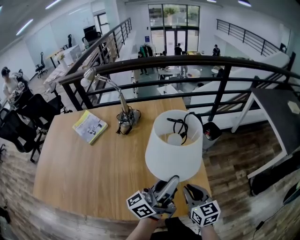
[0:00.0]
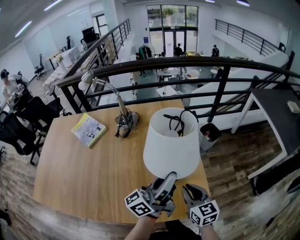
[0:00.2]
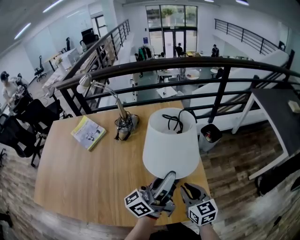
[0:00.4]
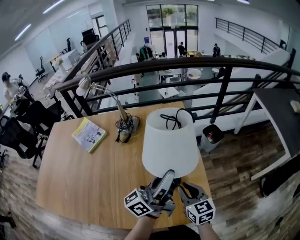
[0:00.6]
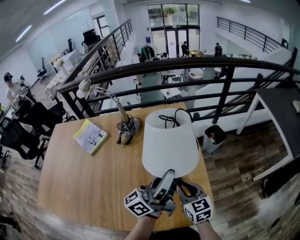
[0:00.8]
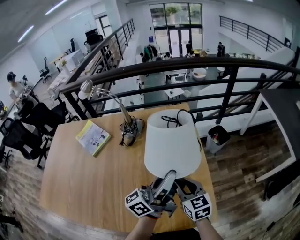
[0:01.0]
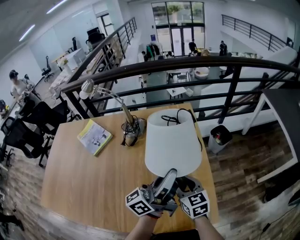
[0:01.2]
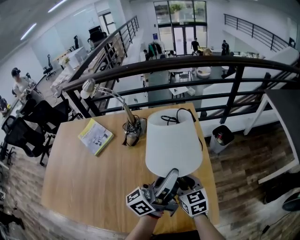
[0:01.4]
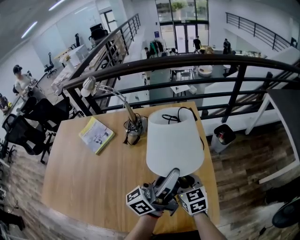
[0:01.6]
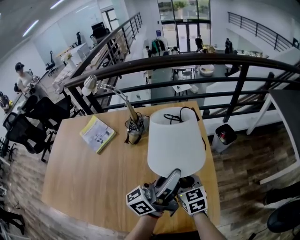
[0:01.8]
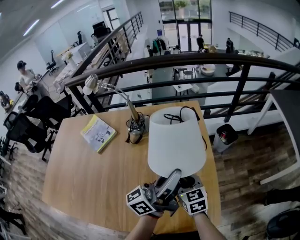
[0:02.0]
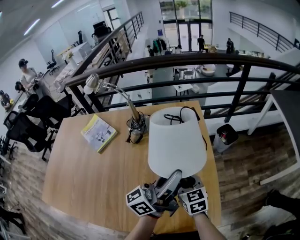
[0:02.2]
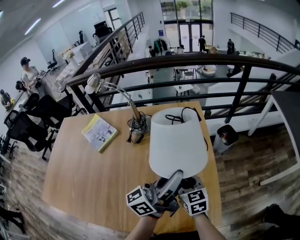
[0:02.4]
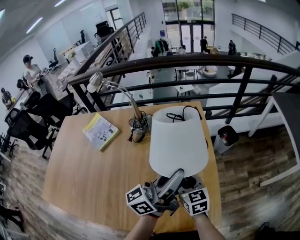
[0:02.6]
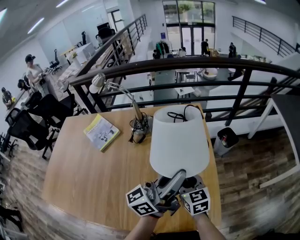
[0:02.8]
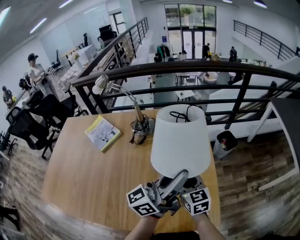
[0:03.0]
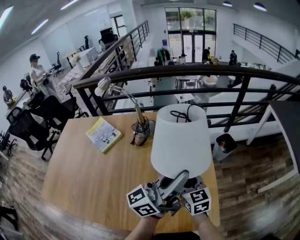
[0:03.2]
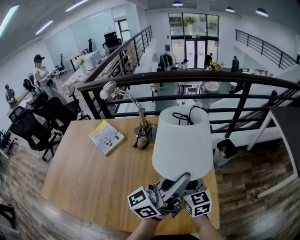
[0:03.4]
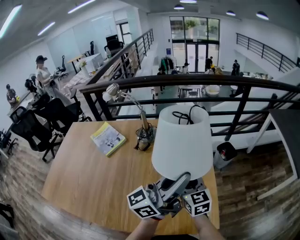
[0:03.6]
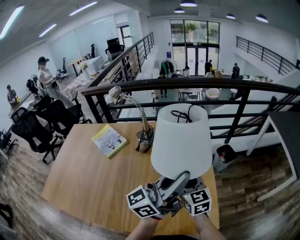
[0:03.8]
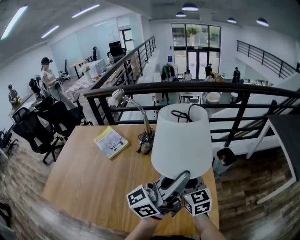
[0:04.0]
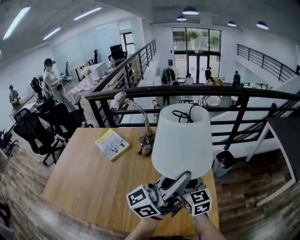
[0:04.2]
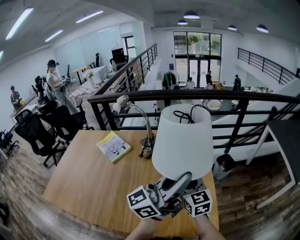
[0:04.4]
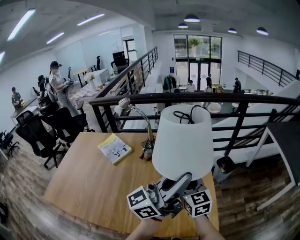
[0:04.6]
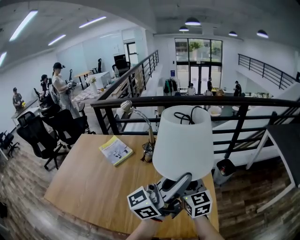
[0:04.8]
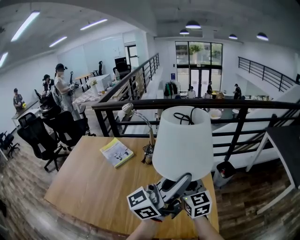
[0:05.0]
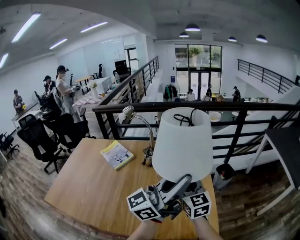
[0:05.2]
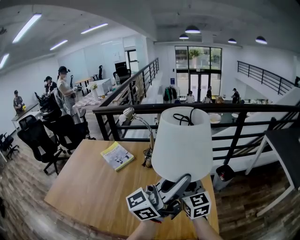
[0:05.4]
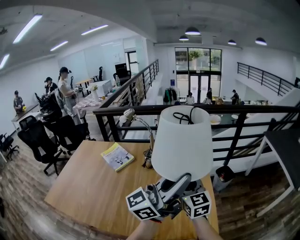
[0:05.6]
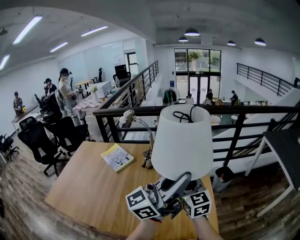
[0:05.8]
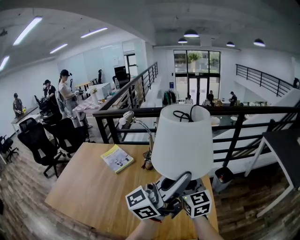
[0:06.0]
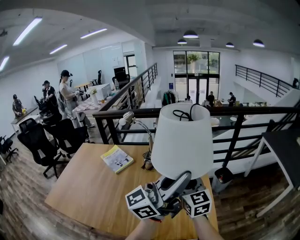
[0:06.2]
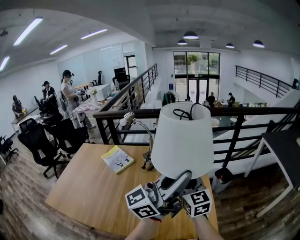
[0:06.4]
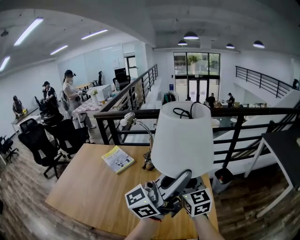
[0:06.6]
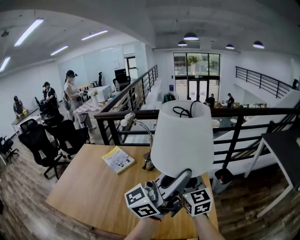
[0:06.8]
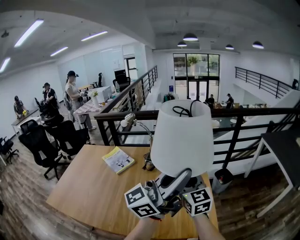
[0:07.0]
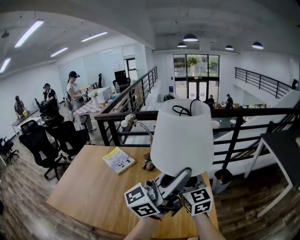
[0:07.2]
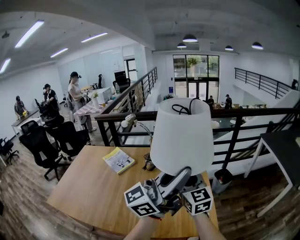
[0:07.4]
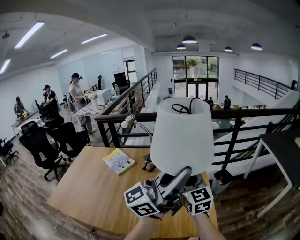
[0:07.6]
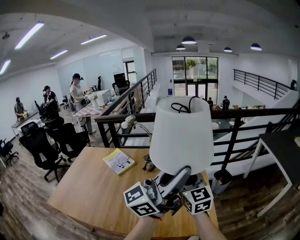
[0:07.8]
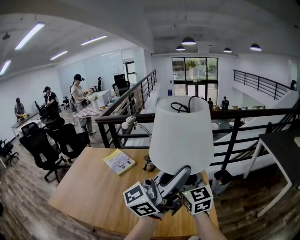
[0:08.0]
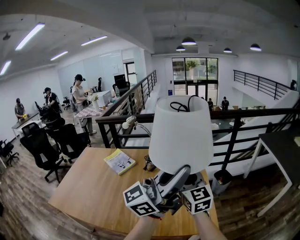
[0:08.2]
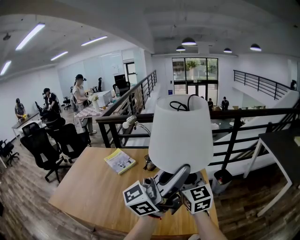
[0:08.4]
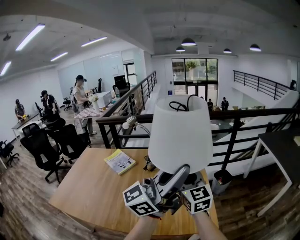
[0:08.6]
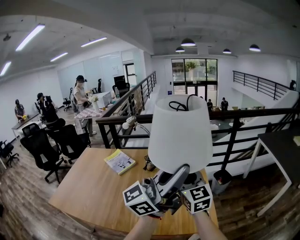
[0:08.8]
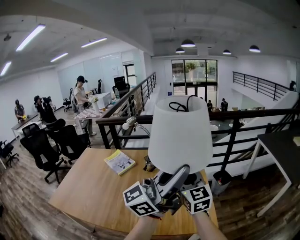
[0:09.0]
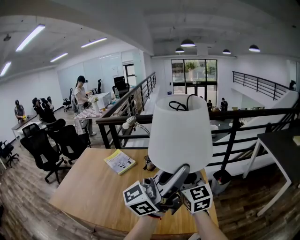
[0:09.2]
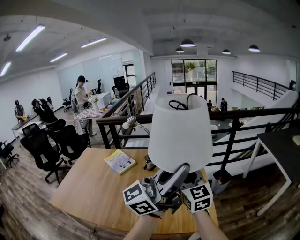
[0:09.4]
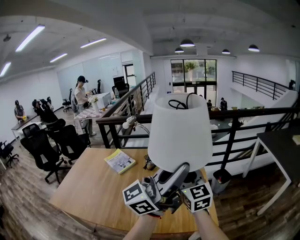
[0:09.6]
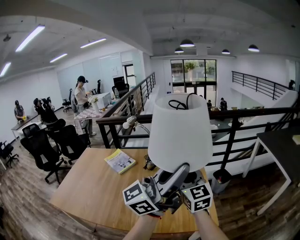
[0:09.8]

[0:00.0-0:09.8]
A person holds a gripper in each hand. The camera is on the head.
0:00.0 to 0:01.4: The right gripper moves forward and to the left, roughly 15 cm. Meanwhile the left gripper moves forward, about 10 cm.
0:01.4 to 0:02.8: The grippers stay close to where they were, moving slightly.
0:02.8 to 0:04.2: The right gripper is displaced upward by about 10 cm. Meanwhile the left gripper heads upward and backward, covering about 10 cm.
0:04.2 to 0:05.6: The grippers both shift upward by some 5 cm.
0:05.6 to 0:07.0: The left gripper changes place by about 5 cm. The right gripper shifts by roughly 5 cm.
0:07.0 to 0:08.4: The grippers move only a little.
0:08.4 to 0:09.8: The grippers move only a little.

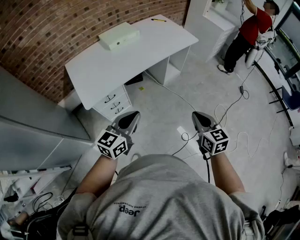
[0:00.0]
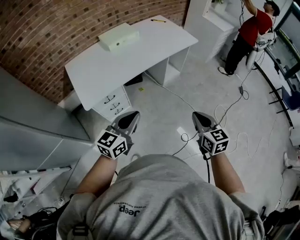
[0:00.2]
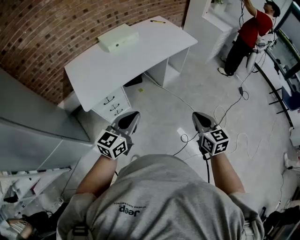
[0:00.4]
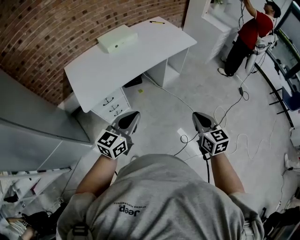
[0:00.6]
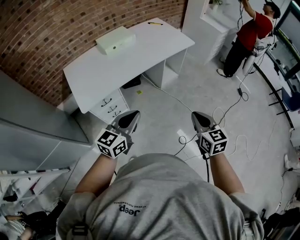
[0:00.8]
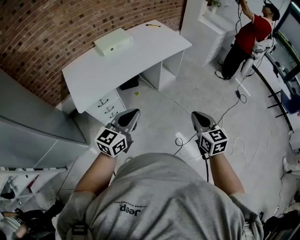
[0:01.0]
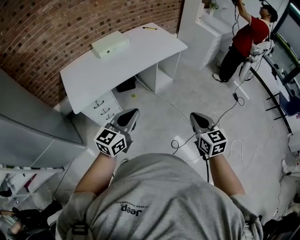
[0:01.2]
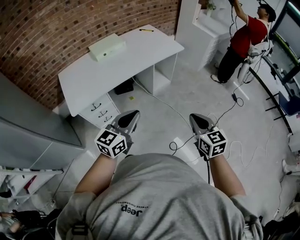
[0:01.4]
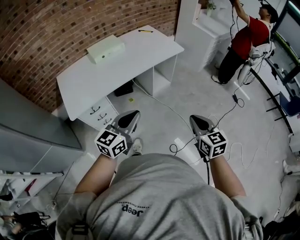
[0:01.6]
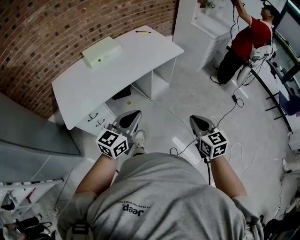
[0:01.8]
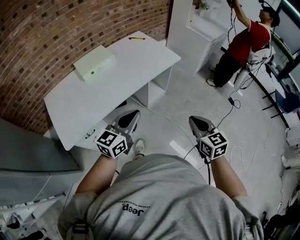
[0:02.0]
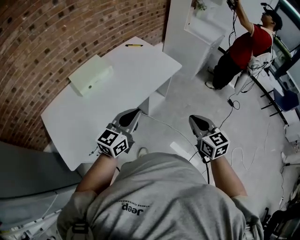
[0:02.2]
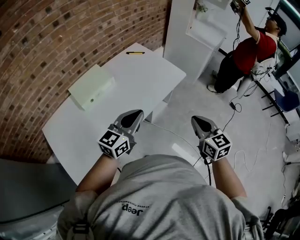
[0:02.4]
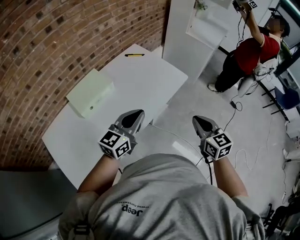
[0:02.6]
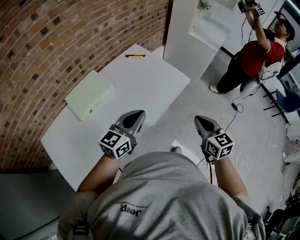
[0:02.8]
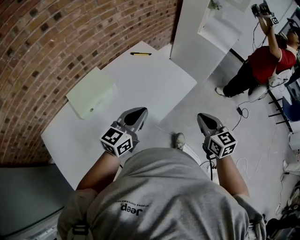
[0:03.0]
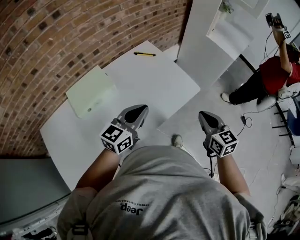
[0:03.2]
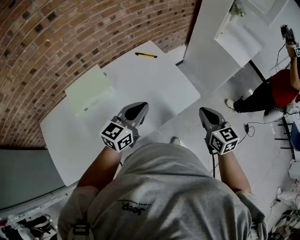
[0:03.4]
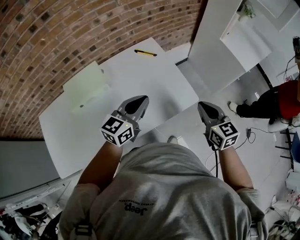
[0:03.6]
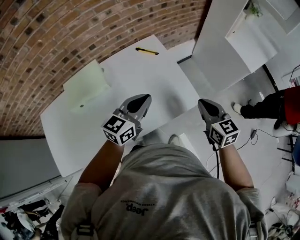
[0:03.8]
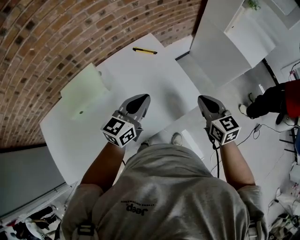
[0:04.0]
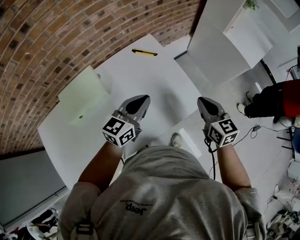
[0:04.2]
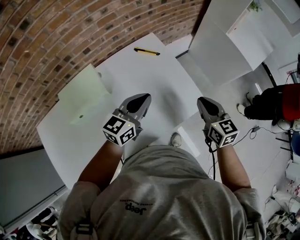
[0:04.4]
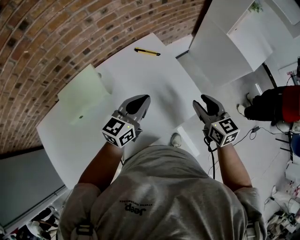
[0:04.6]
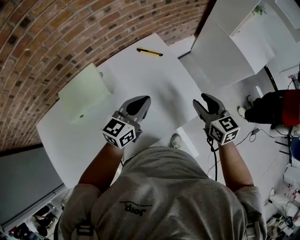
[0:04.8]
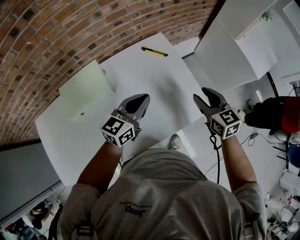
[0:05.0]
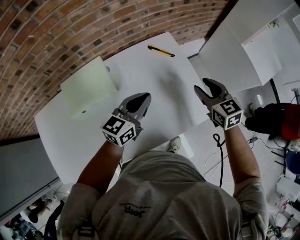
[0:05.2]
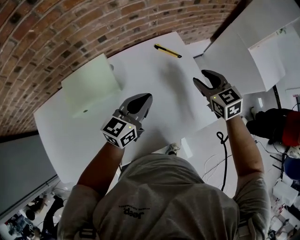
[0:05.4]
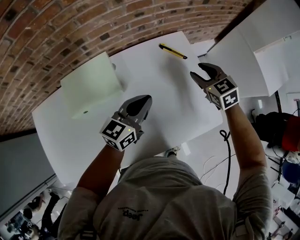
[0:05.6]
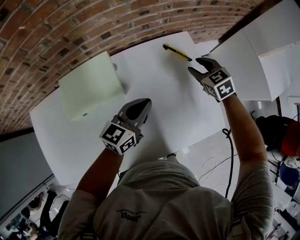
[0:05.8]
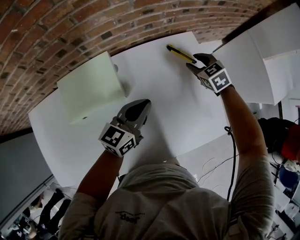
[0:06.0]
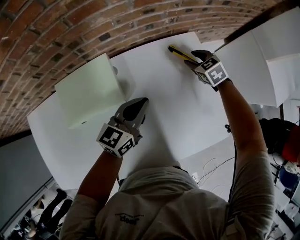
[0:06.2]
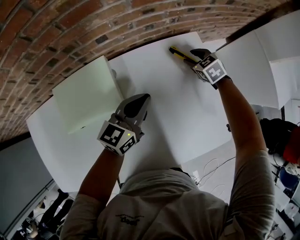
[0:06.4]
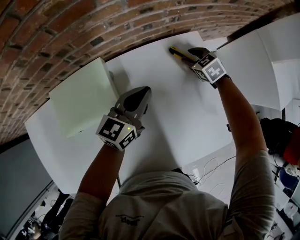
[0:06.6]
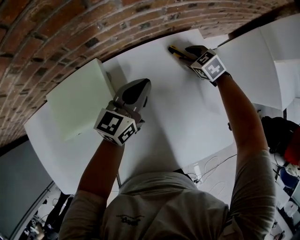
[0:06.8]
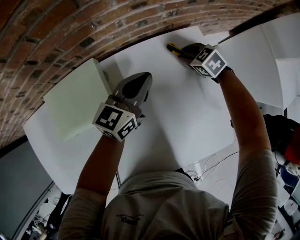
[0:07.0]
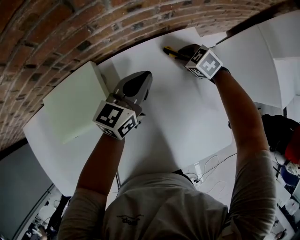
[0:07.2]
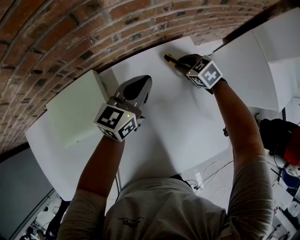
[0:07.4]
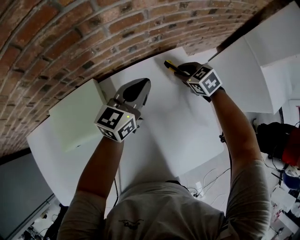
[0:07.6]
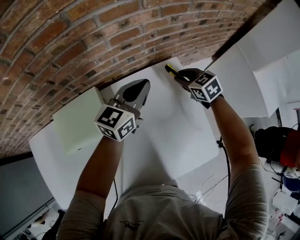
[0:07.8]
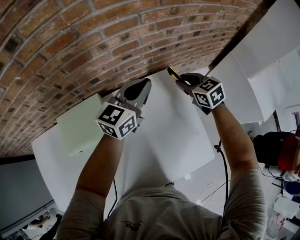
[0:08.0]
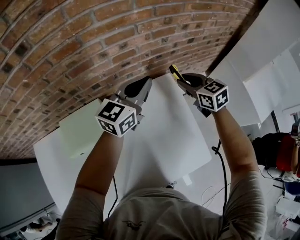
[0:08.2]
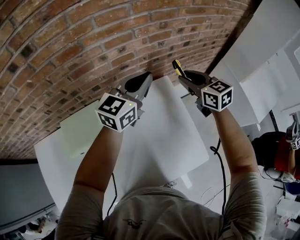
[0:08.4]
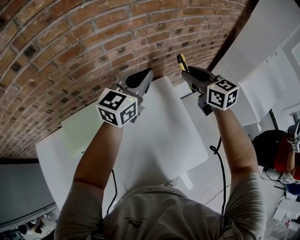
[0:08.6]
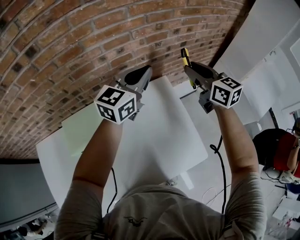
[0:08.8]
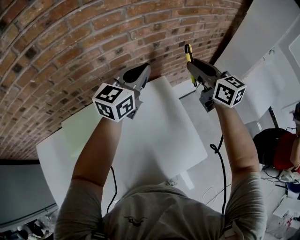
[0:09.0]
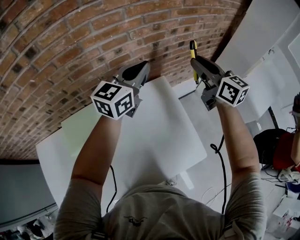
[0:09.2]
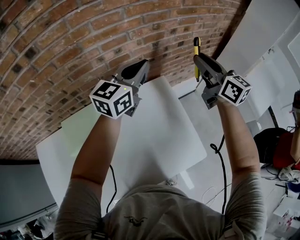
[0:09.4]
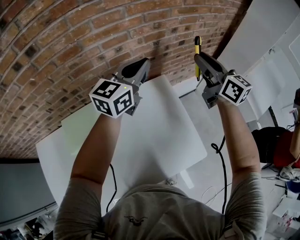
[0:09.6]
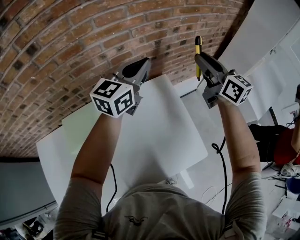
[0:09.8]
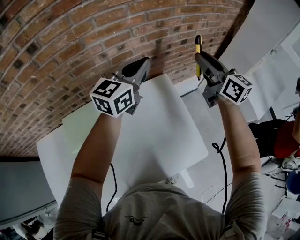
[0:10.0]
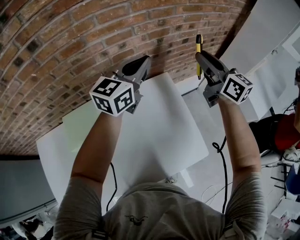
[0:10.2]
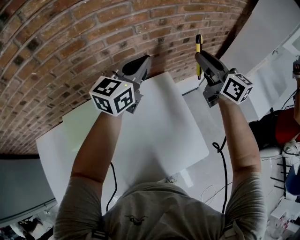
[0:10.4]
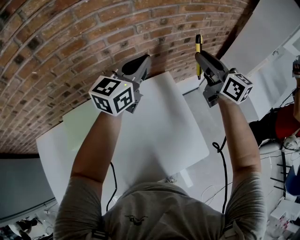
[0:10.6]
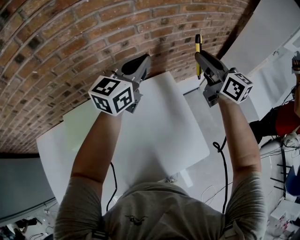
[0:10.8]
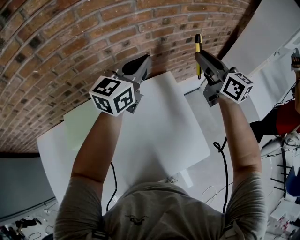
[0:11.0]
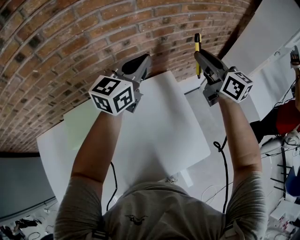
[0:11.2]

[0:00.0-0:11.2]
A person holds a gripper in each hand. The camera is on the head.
0:00.0 to 0:01.6: The left gripper shifts approximately 15 cm to the right and forward. The right gripper heads to the right, covering roughly 15 cm.
0:01.6 to 0:03.2: Both grippers are carried forward, roughly 60 cm.
0:03.2 to 0:04.8: The grippers both shift forward by approximately 20 cm. The right gripper opens its fingers.
0:04.8 to 0:06.4: The right gripper heads forward, downward and to the left, covering some 40 cm, and turns by about 40 degrees; the left gripper heads forward, to the left and downward, covering approximately 20 cm.
0:06.4 to 0:08.0: The left gripper goes roughly 20 cm upward, forward and to the right. Meanwhile the right gripper shifts some 15 cm upward, and changes its angle by approximately 20 degrees.
0:08.0 to 0:09.6: The left gripper heads upward, covering approximately 15 cm; the right gripper shifts approximately 25 cm upward, and tips its fingers upward by about 40 degrees.
0:09.6 to 0:11.2: The grippers move only a little.

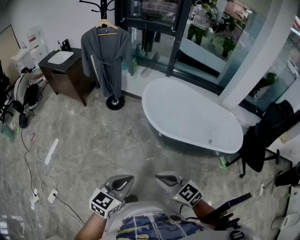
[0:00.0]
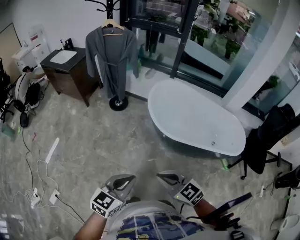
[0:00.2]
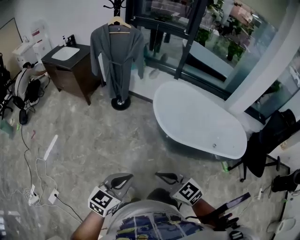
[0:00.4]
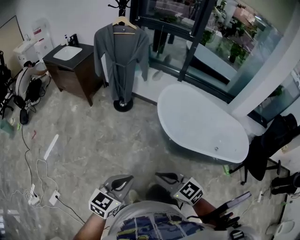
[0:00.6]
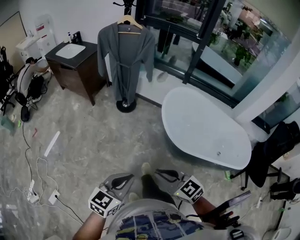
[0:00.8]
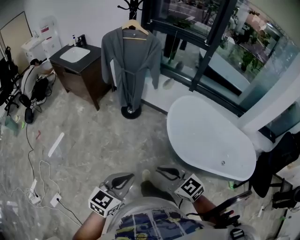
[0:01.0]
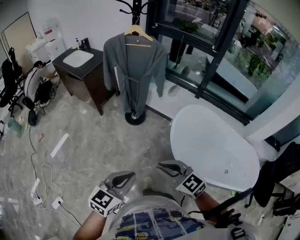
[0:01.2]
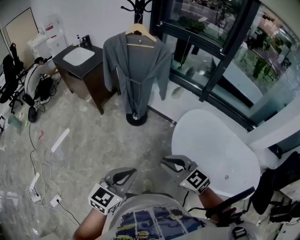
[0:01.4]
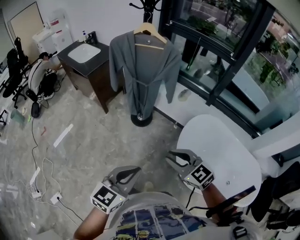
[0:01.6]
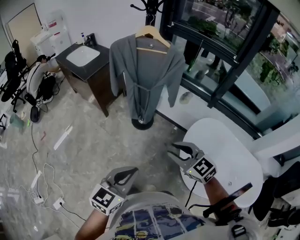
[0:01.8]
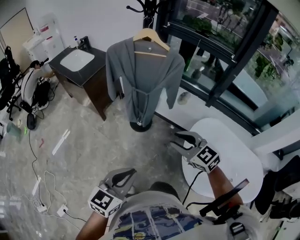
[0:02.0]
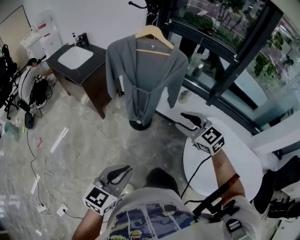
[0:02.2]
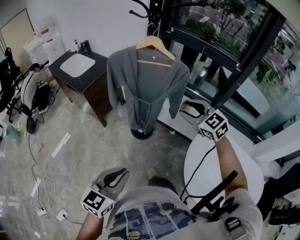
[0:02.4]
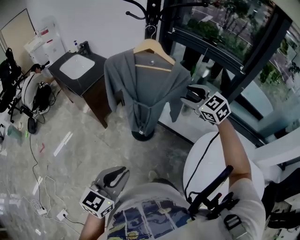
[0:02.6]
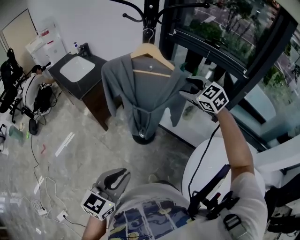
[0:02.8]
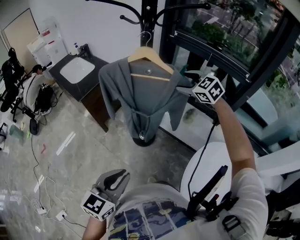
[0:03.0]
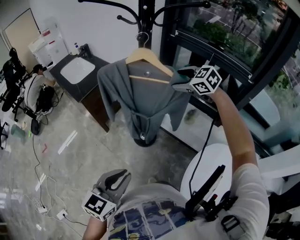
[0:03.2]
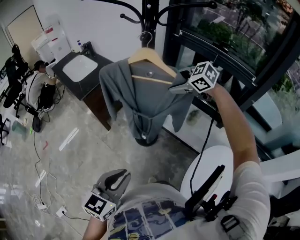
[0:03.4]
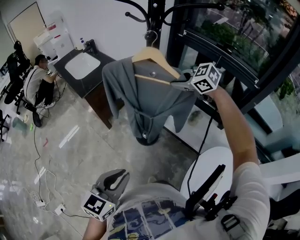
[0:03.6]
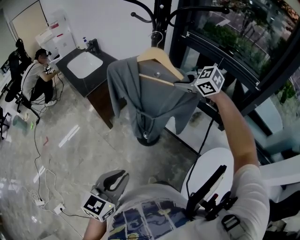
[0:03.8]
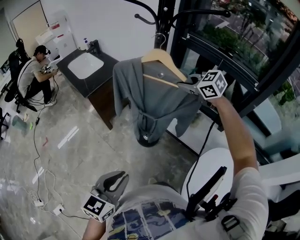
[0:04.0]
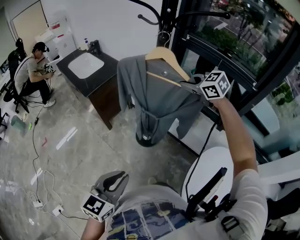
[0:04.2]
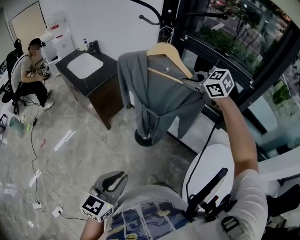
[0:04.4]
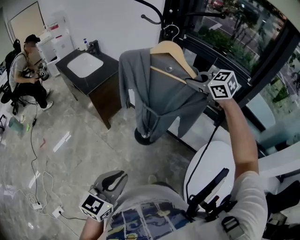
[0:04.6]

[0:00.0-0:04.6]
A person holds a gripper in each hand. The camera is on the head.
0:00.0 to 0:01.6: The two grippers travel together, forward, roughly 50 cm.
0:01.6 to 0:03.0: The left gripper travels forward by some 25 cm; the right gripper moves forward, approximately 60 cm, and opens up.
0:03.0 to 0:04.6: The right gripper goes some 10 cm to the left, upward and backward, and closes. Meanwhile the left gripper goes some 5 cm to the left.